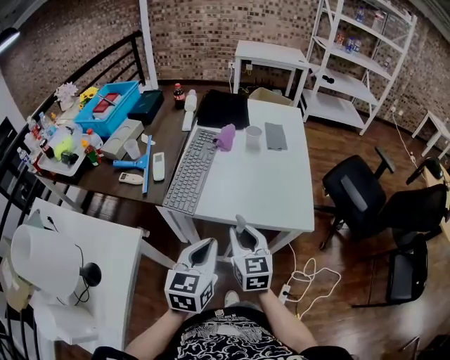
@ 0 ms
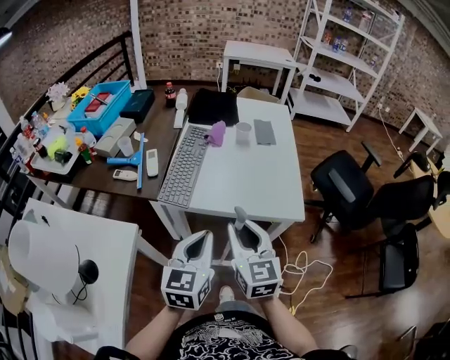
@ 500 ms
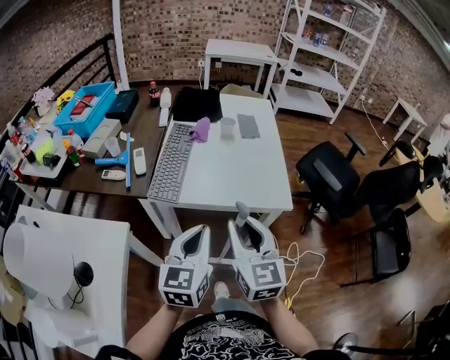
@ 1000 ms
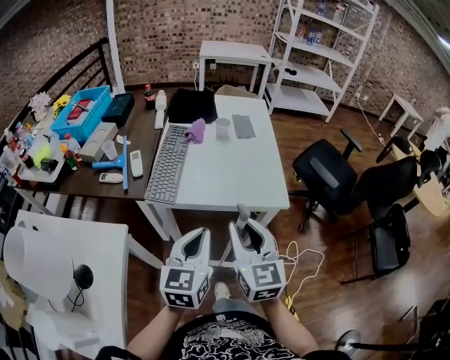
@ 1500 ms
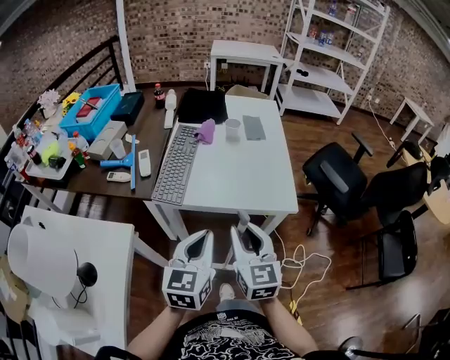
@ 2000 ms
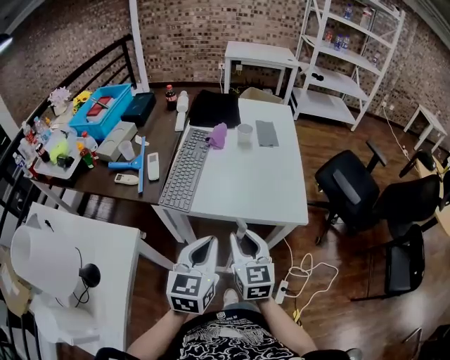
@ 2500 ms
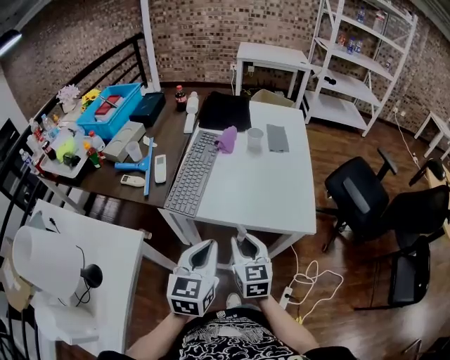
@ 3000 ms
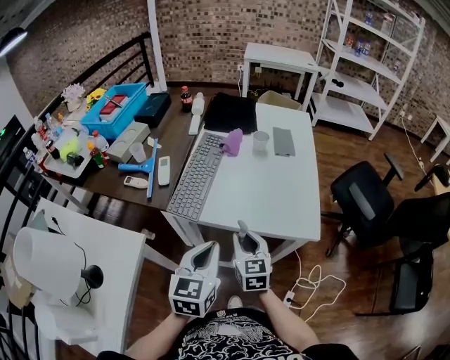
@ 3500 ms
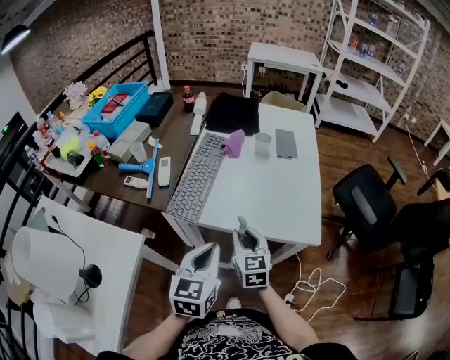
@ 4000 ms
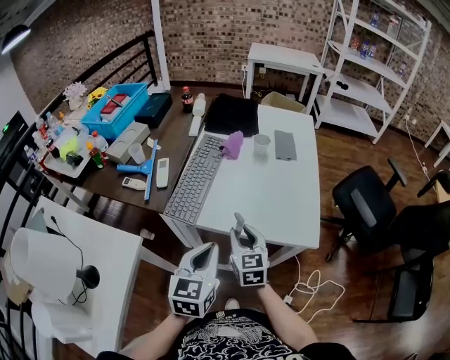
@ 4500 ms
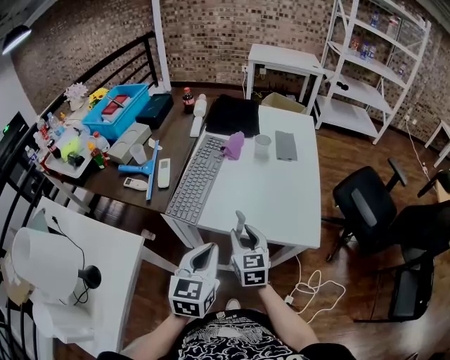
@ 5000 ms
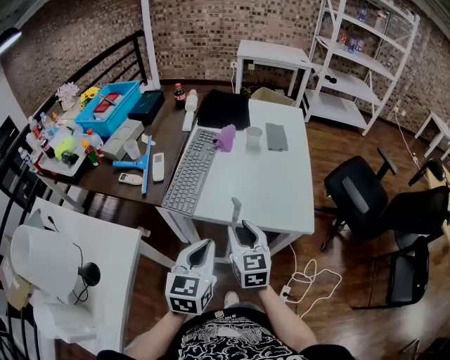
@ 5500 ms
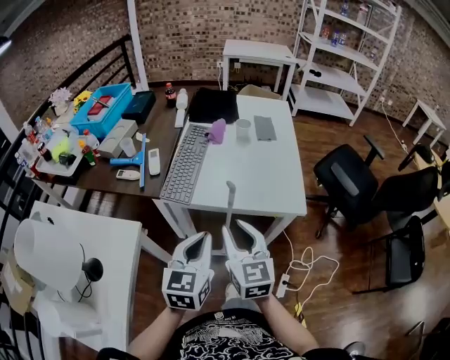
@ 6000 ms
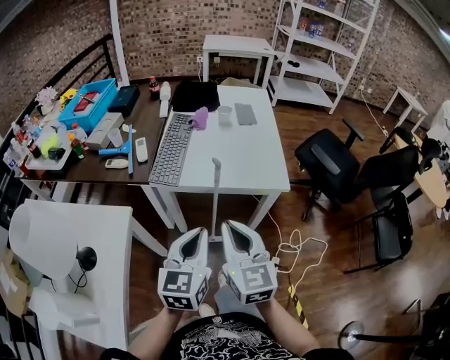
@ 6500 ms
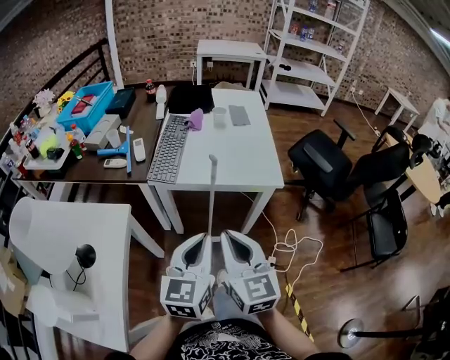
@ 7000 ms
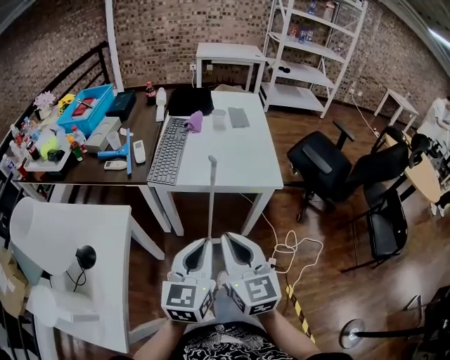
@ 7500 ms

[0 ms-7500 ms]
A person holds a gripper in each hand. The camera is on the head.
0 ms to 2000 ms: The left gripper shifts by about 5 cm. The right gripper goes roughly 10 cm backward and upward.
2000 ms to 4000 ms: The right gripper shifts some 20 cm forward and downward. The left gripper shifts some 5 cm forward.
4000 ms to 5500 ms: The right gripper shifts by approximately 5 cm.
5500 ms to 7500 ms: The left gripper shifts approximately 20 cm backward, while the right gripper heads backward and upward, covering approximately 30 cm, and closes its fingers.

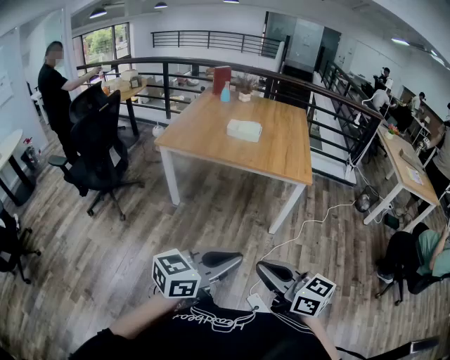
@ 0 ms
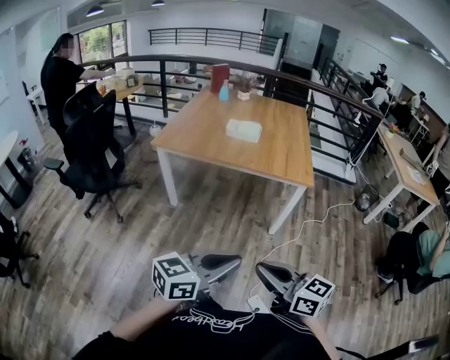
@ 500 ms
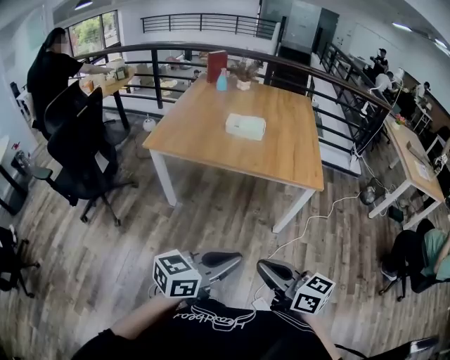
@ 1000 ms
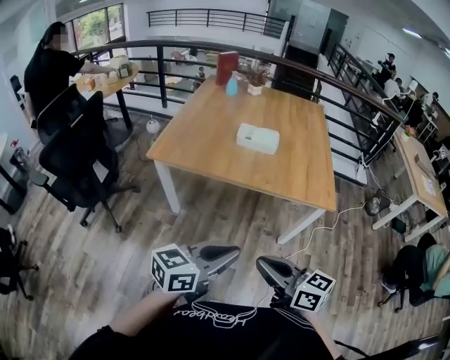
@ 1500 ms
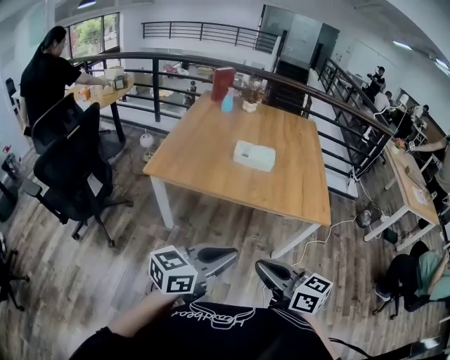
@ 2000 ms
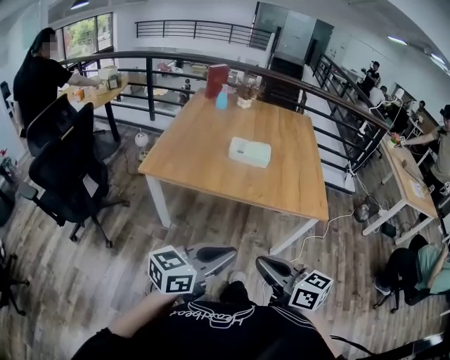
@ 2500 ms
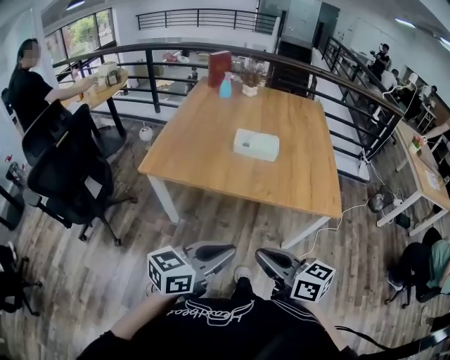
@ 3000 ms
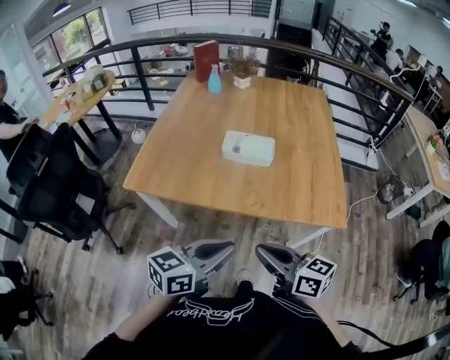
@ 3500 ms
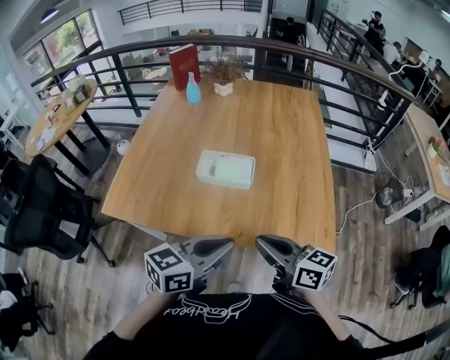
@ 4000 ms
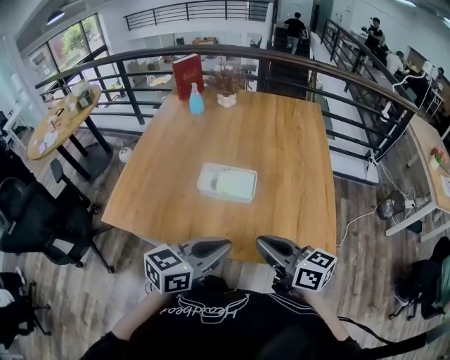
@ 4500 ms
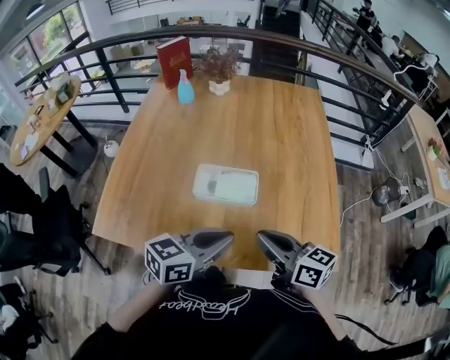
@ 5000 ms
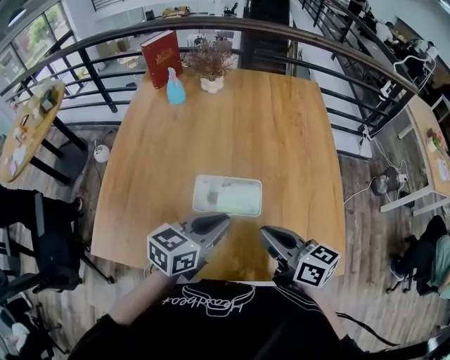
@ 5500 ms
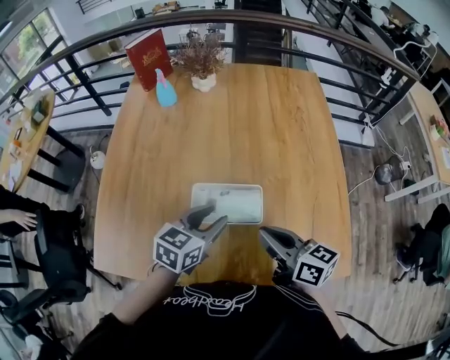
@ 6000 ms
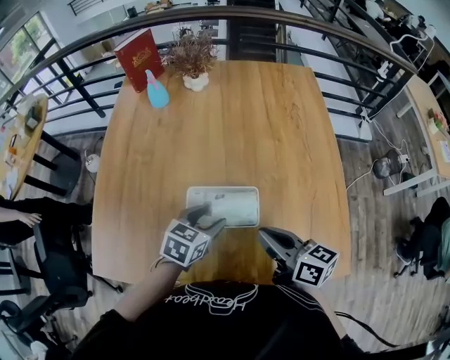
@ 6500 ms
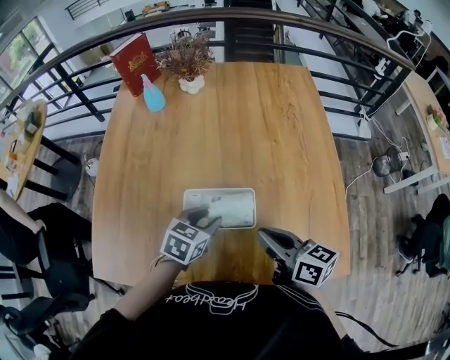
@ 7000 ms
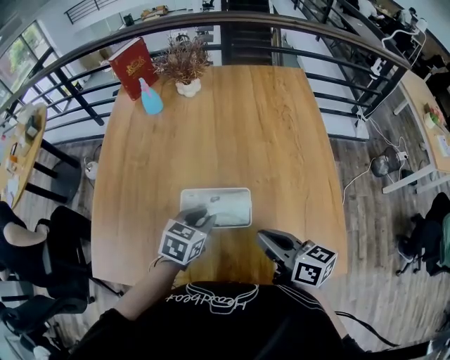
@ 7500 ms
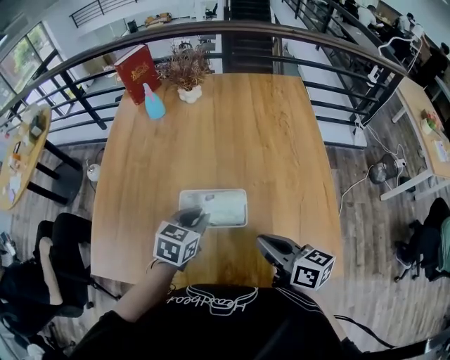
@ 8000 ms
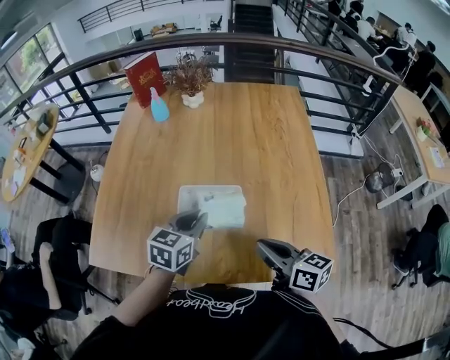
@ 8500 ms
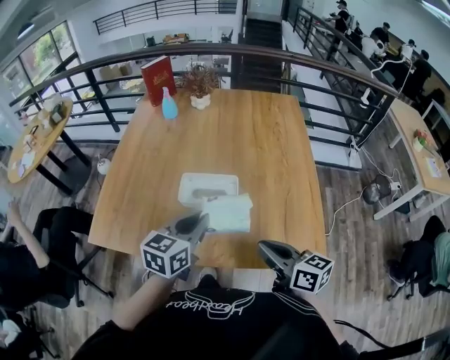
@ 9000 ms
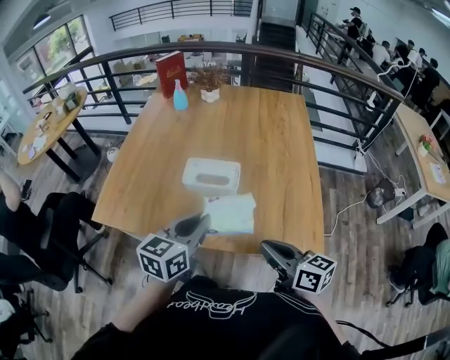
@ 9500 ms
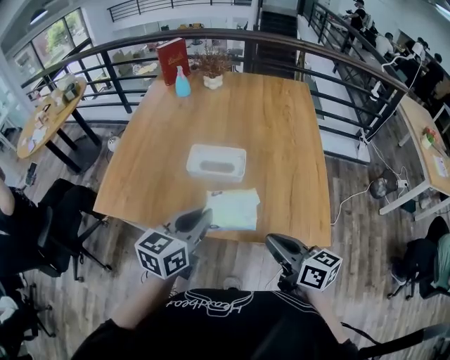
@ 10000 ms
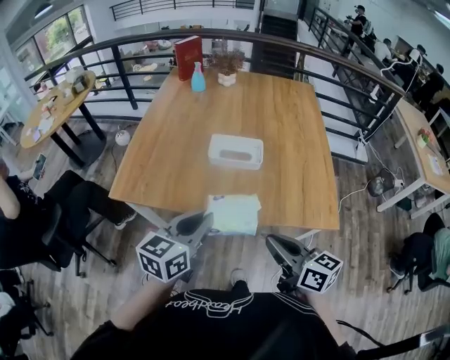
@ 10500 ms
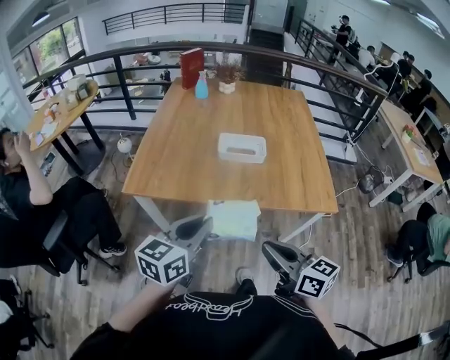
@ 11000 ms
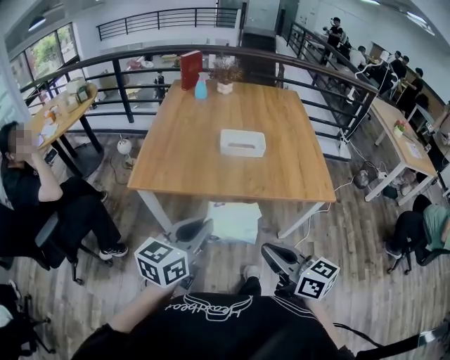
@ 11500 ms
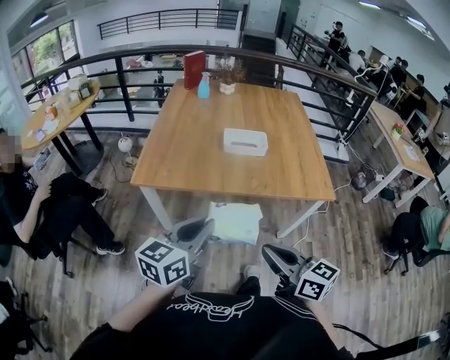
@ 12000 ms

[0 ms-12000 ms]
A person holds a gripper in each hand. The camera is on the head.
0 ms to 2000 ms: The two grippers go approximately 35 cm forward and to the left.
2000 ms to 4000 ms: Both grippers move forward, roughly 40 cm.
4000 ms to 6000 ms: The grippers both shift forward by approximately 30 cm. The left gripper changes its angle by about 20 degrees, and opens its fingers.
6000 ms to 8000 ms: The right gripper shifts by roughly 5 cm. The left gripper opens, then closes once more.
8000 ms to 10000 ms: The right gripper moves backward, about 25 cm, while the left gripper goes approximately 30 cm backward and upward, and turns by about 30 degrees.
10000 ms to 12000 ms: Both grippers move backward and to the left, about 40 cm.

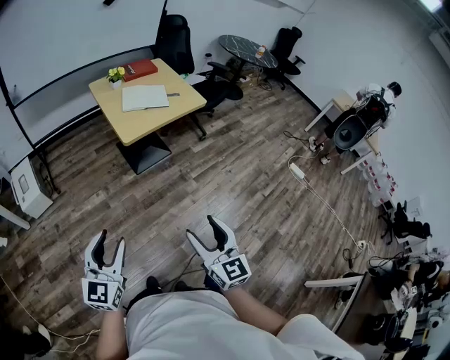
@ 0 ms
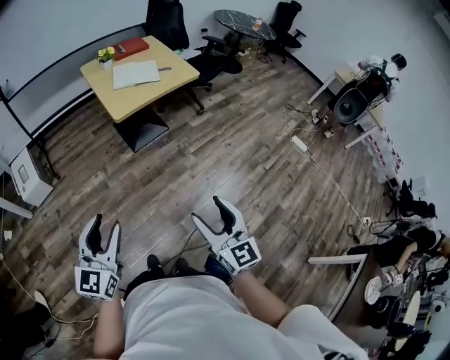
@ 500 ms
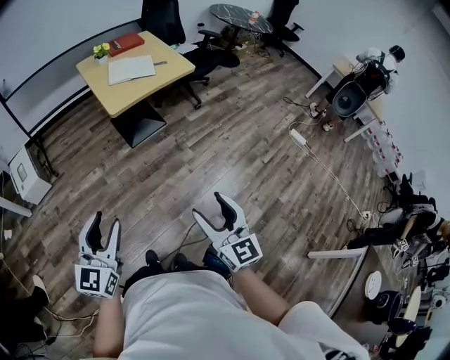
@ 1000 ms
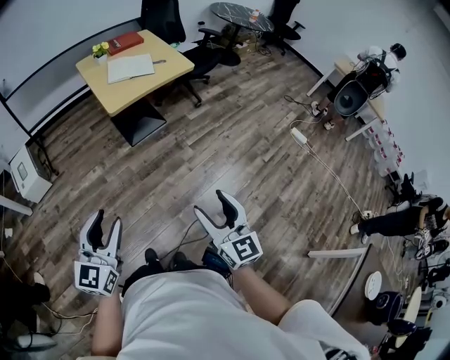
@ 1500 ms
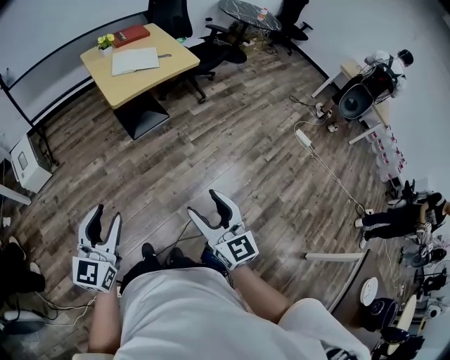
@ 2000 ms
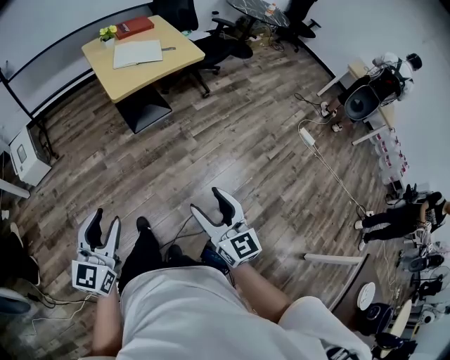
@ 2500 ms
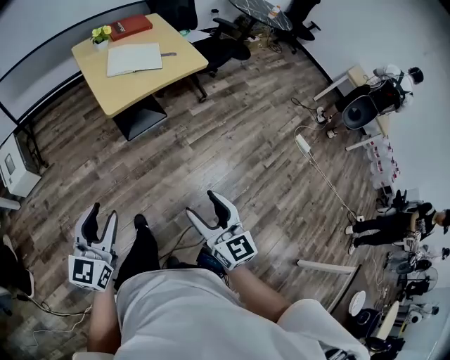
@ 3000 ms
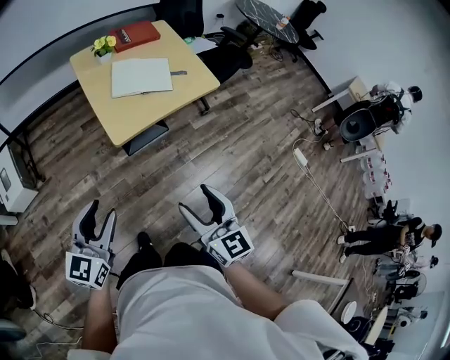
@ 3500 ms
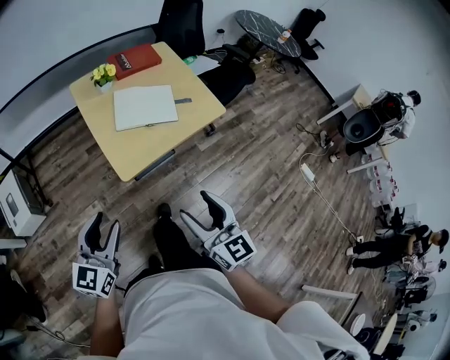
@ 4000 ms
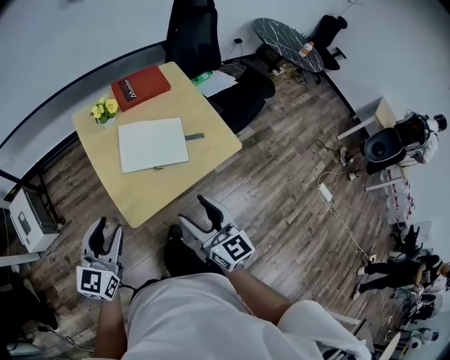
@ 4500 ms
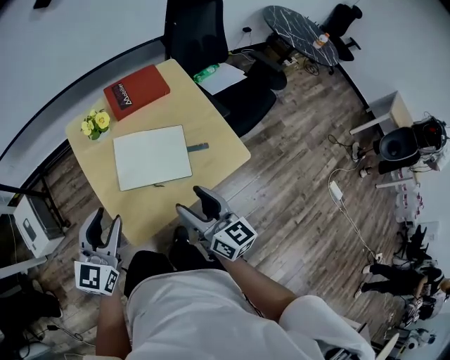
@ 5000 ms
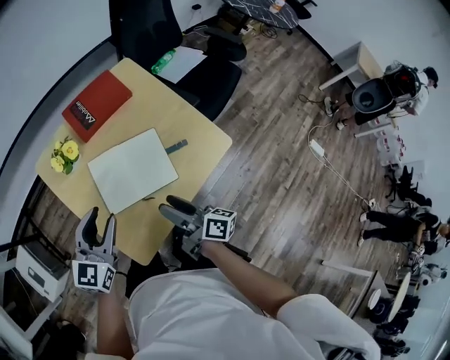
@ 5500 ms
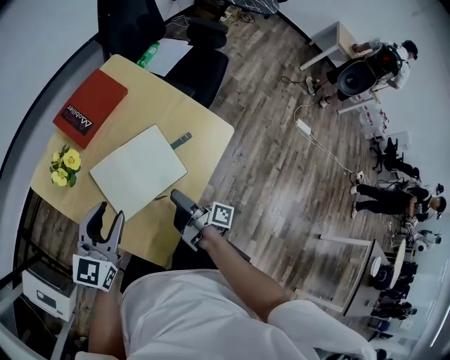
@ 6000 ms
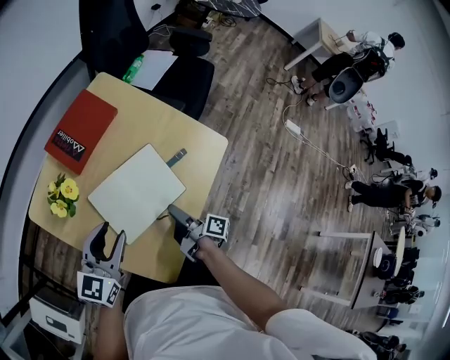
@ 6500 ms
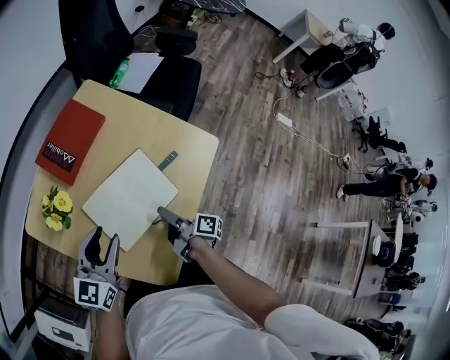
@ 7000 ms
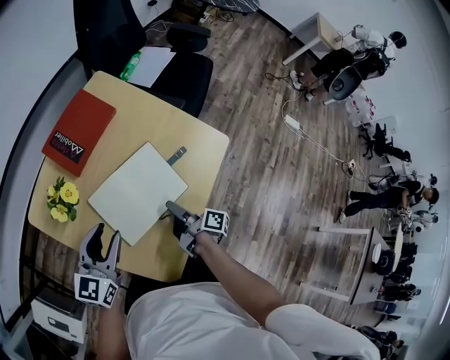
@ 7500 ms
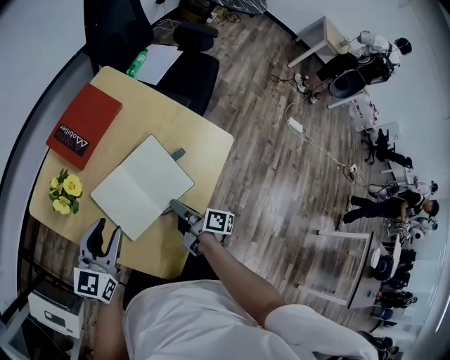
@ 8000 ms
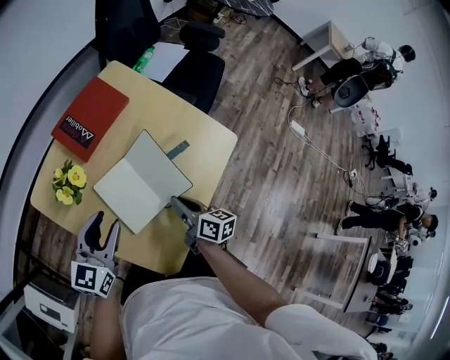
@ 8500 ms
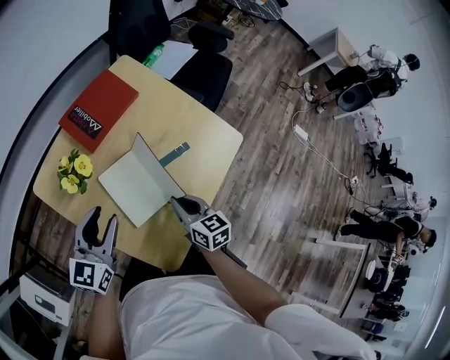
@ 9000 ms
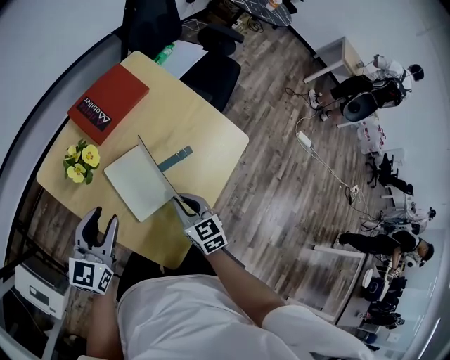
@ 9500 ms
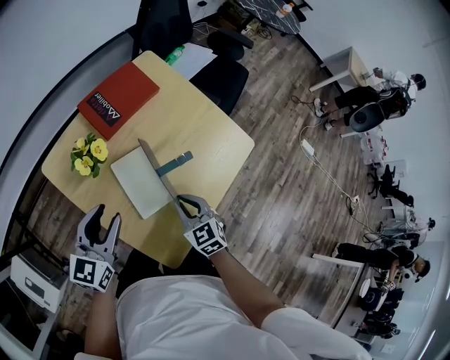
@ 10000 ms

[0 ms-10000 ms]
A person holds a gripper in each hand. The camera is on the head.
0 ms to 2000 ms: The right gripper shifts about 10 cm to the right and backward; the left gripper shifts about 10 cm to the right.
2000 ms to 4000 ms: The pair of grippers is taken forward, about 50 cm.
4000 ms to 6000 ms: The right gripper moves roughly 40 cm, and twists some 90 degrees clockwise, seen from behind. Meanwhile the left gripper moves some 50 cm, and turns by some 30 degrees.
6000 ms to 8000 ms: The left gripper changes place by roughly 5 cm; the right gripper closes its fingers.
8000 ms to 10000 ms: Both grippers move to the left, some 5 cm. The right gripper rolls counterclockwise, seen from behind, by approximately 90 degrees.
